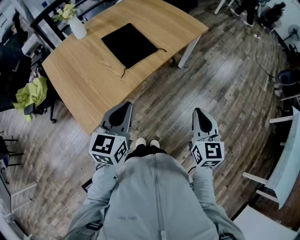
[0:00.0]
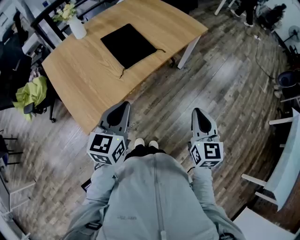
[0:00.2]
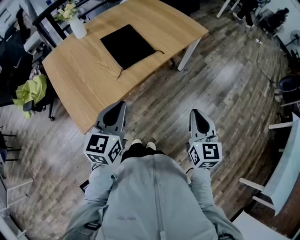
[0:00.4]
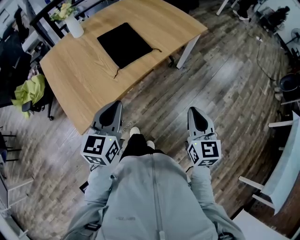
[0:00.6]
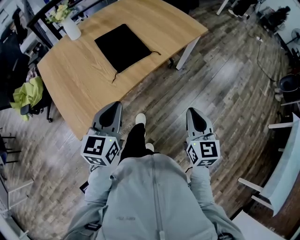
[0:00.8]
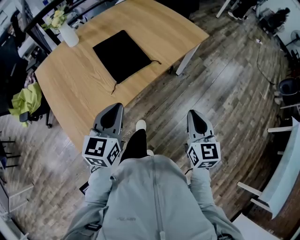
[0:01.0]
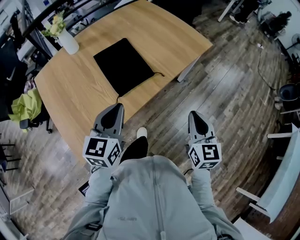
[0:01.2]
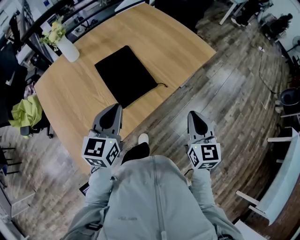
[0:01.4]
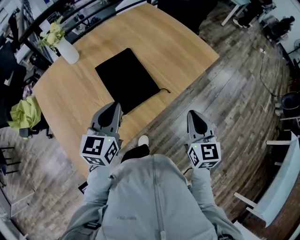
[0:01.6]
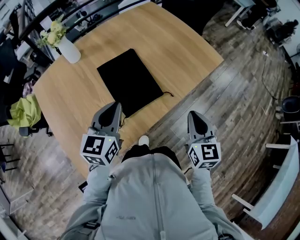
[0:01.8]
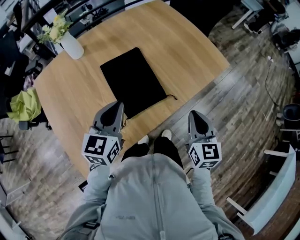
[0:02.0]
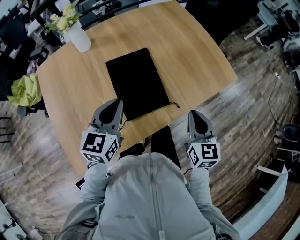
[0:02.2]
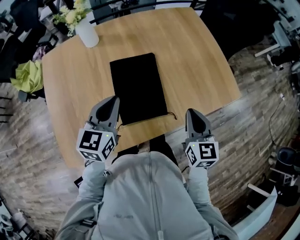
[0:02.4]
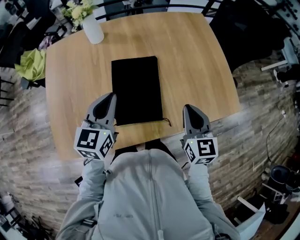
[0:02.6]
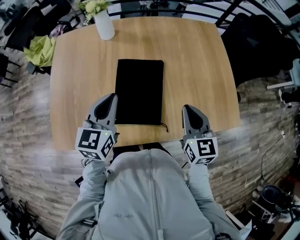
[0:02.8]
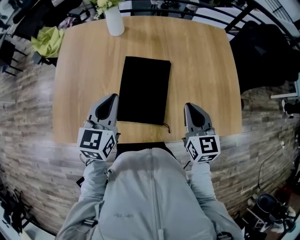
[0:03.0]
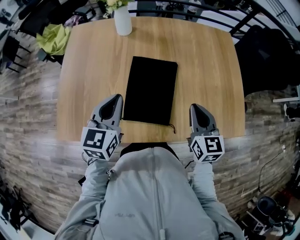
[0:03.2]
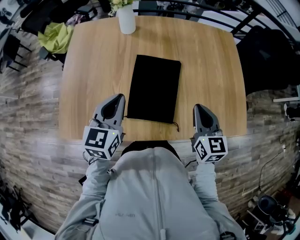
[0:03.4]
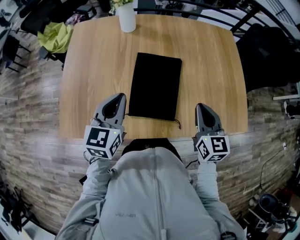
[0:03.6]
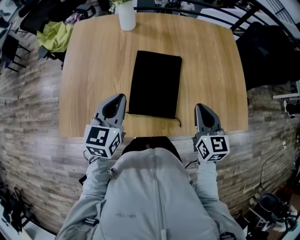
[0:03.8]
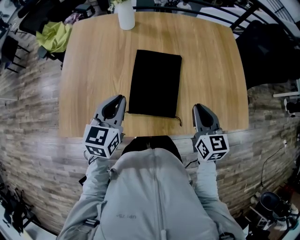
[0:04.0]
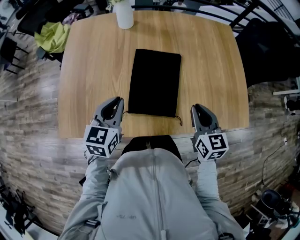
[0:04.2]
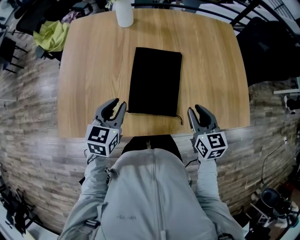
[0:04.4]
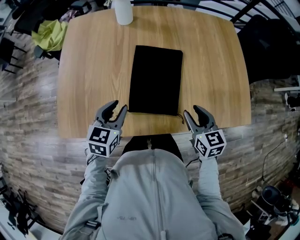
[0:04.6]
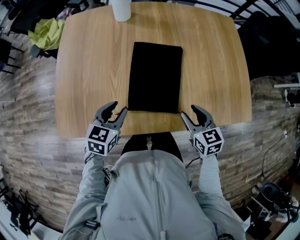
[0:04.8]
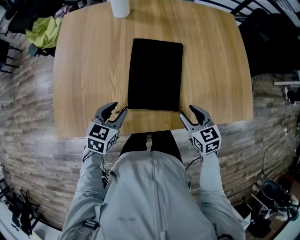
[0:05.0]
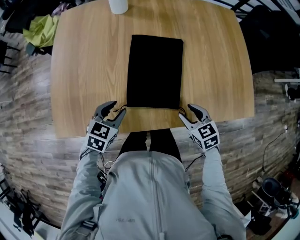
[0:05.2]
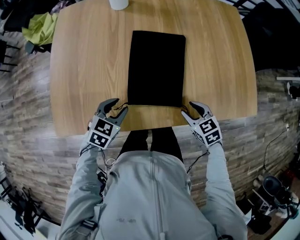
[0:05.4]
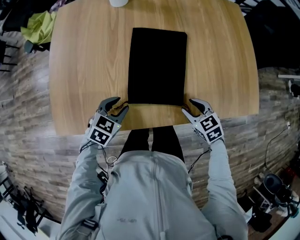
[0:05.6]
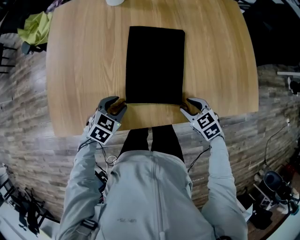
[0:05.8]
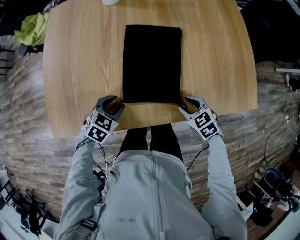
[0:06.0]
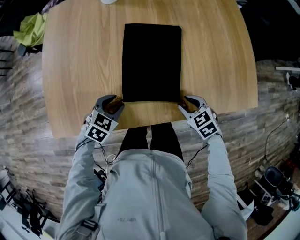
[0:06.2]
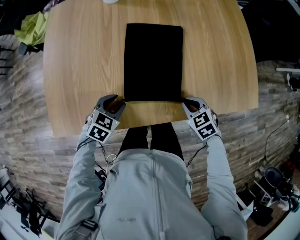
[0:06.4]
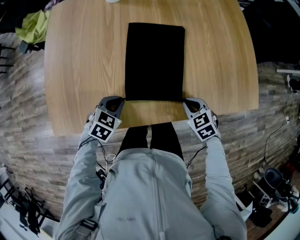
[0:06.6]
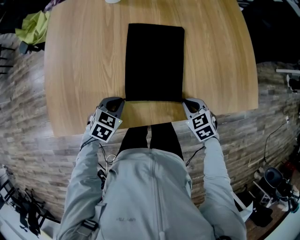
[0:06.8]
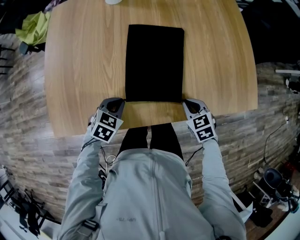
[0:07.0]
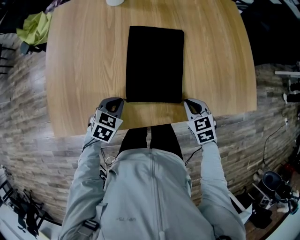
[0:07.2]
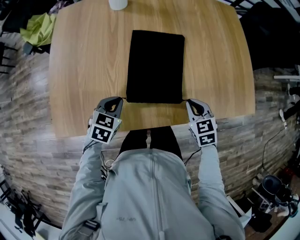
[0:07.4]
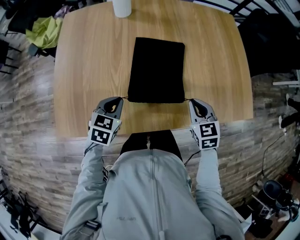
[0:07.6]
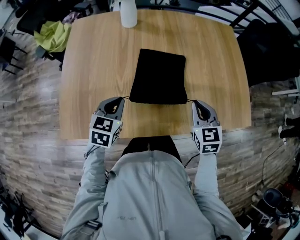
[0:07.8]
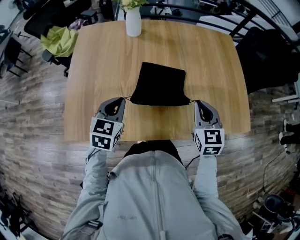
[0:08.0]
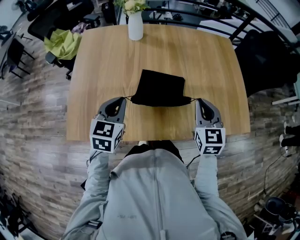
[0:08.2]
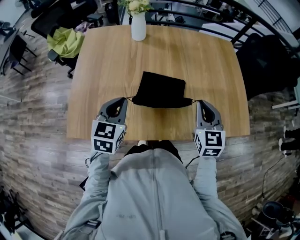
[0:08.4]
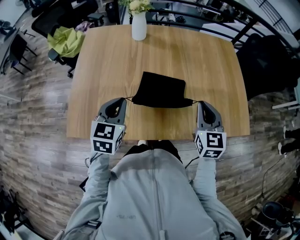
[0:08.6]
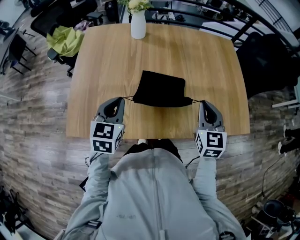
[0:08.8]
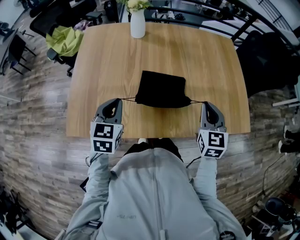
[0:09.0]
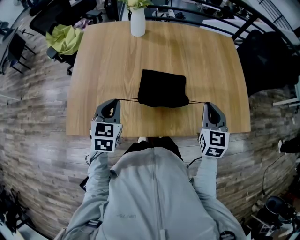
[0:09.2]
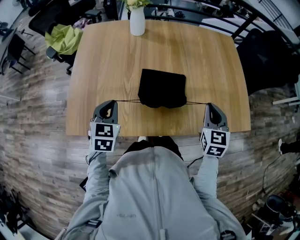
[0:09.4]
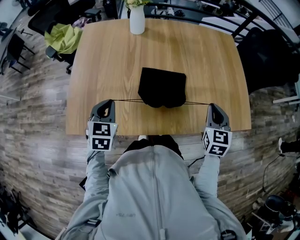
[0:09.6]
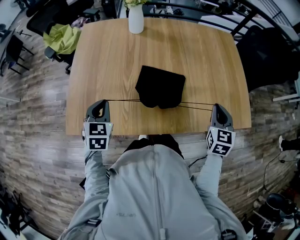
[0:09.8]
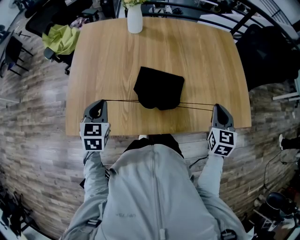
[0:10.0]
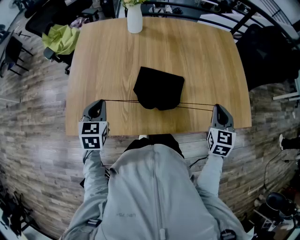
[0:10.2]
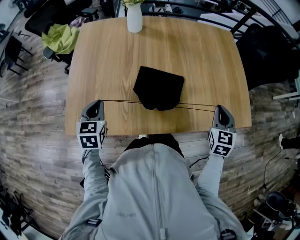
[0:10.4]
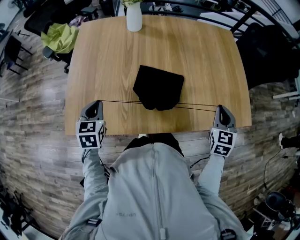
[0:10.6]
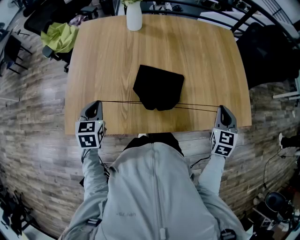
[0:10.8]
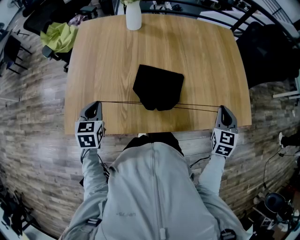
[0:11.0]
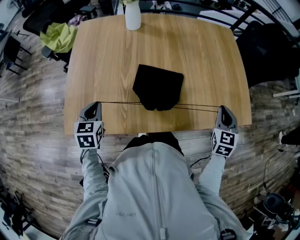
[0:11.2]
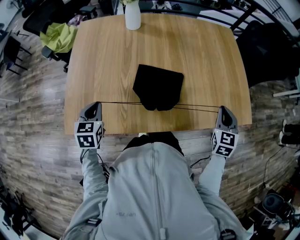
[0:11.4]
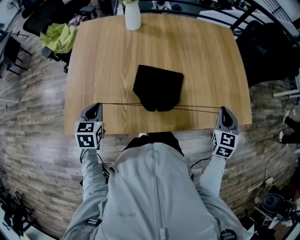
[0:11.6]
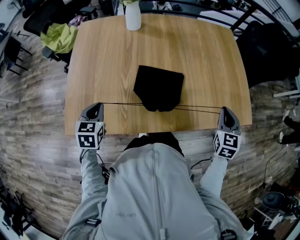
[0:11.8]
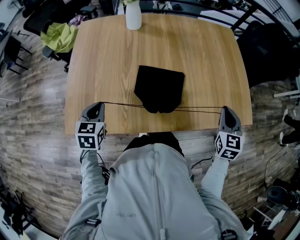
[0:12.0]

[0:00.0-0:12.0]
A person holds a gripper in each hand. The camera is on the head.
0:00.0 to 0:01.6: The two grippers go approximately 25 cm forward.
0:01.6 to 0:03.0: The left gripper shifts by approximately 10 cm, and changes its angle by roughly 40 degrees, while the right gripper ends up roughly 25 cm from where it was, and rotates roughly 40 degrees.
0:03.0 to 0:04.4: The left gripper is displaced downward by about 10 cm, while the right gripper heads downward, covering roughly 5 cm.
0:04.4 to 0:06.0: Both grippers travel together downward, roughly 15 cm. The left gripper turns by approximately 40 degrees. The right gripper swivels roughly 40 degrees.
0:06.0 to 0:07.6: The right gripper shifts roughly 10 cm upward and forward, rotates roughly 30 degrees, and closes, while the left gripper goes approximately 5 cm upward, rotates about 20 degrees, and closes its fingers.
0:07.6 to 0:09.0: The grippers both shift upward by some 10 cm. The right gripper turns by about 20 degrees, while the left gripper turns by approximately 20 degrees.
0:09.0 to 0:10.4: The right gripper travels to the right by approximately 10 cm. The left gripper goes approximately 10 cm to the left.
0:10.4 to 0:12.0: The grippers move only a little.

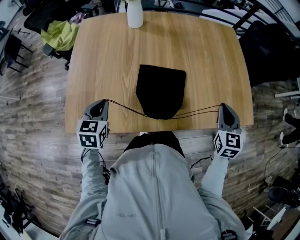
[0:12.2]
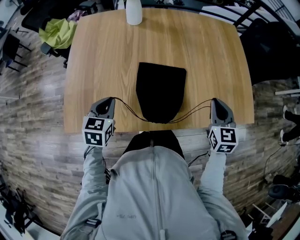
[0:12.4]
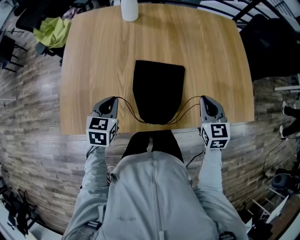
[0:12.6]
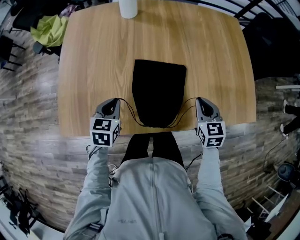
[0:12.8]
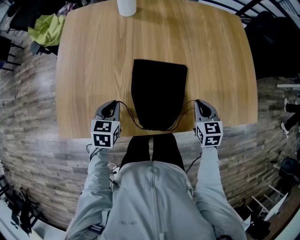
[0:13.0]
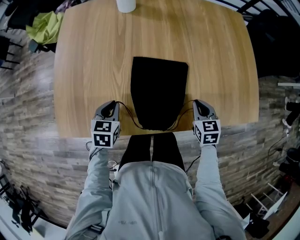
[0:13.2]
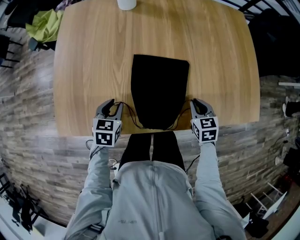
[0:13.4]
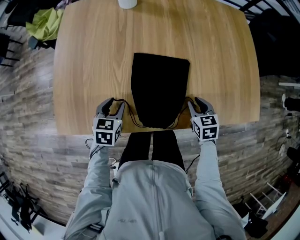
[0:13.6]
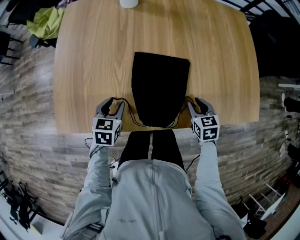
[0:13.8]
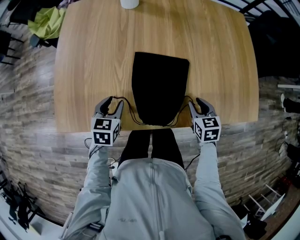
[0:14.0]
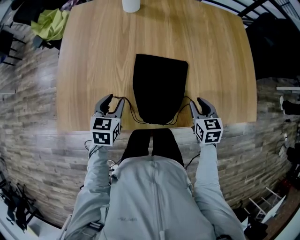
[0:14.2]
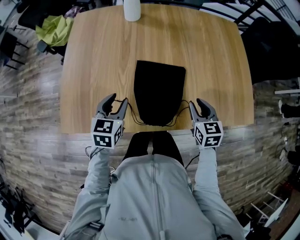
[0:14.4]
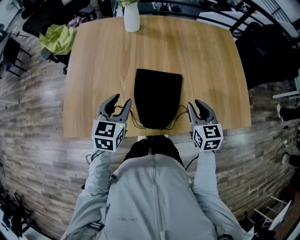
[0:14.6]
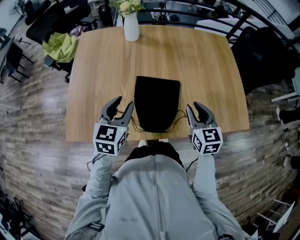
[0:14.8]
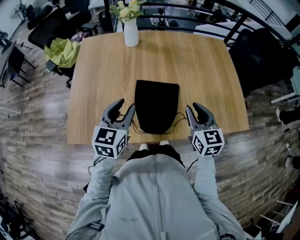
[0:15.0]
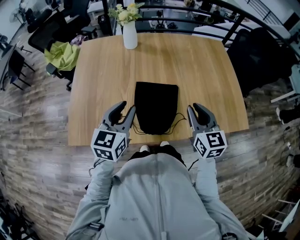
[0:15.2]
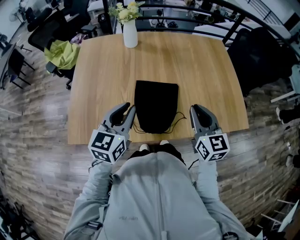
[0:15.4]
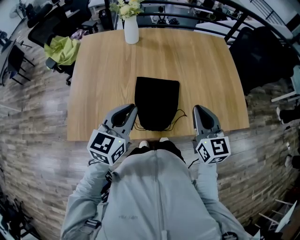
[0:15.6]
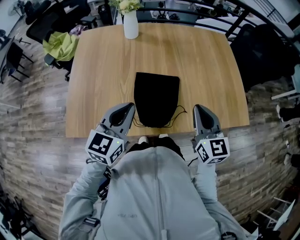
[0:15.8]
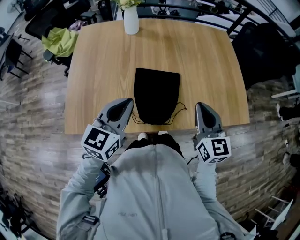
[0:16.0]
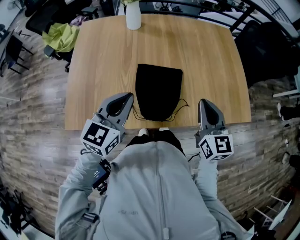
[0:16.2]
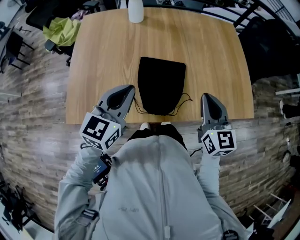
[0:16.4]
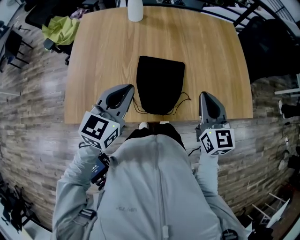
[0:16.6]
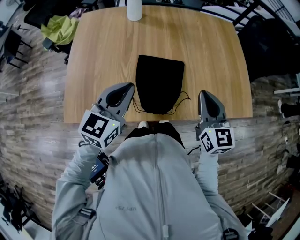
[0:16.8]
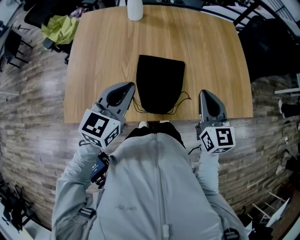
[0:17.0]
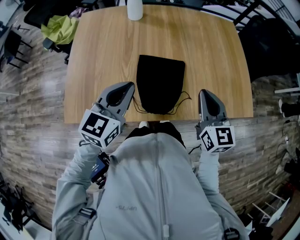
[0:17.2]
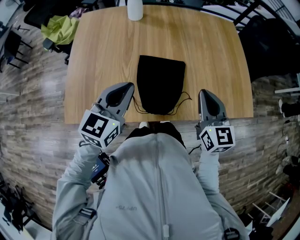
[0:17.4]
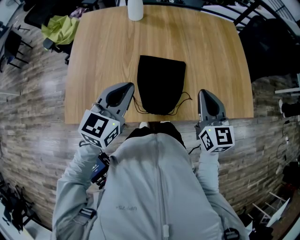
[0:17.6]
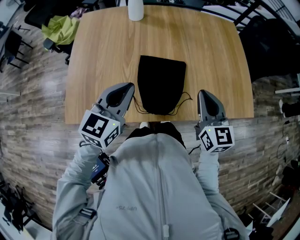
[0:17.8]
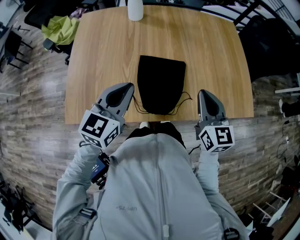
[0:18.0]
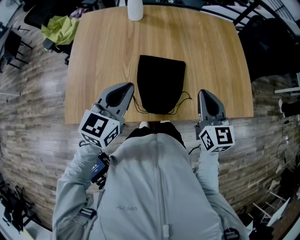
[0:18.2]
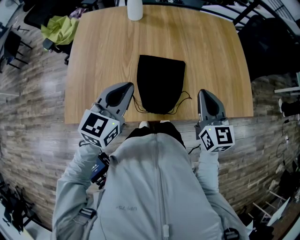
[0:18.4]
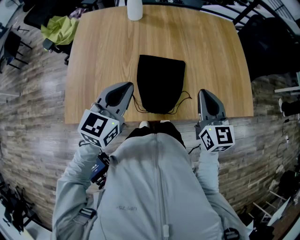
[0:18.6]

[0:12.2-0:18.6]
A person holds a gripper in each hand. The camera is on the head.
0:12.2 to 0:13.8: The left gripper goes some 15 cm downward and to the right, and opens. Meanwhile the right gripper is displaced downward by some 20 cm, swivels approximately 30 degrees, and opens up.
0:13.8 to 0:15.4: The two grippers go roughly 25 cm upward. The right gripper angles its fingers upward, by some 40 degrees. The left gripper tilts its fingers about 30 degrees upward, and closes its fingers.
0:15.4 to 0:17.0: The grippers stay close to where they were, moving slightly.
0:17.0 to 0:18.6: The two grippers keep their place.

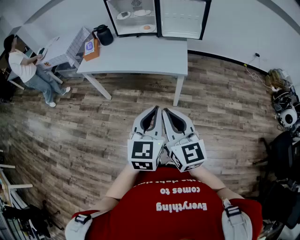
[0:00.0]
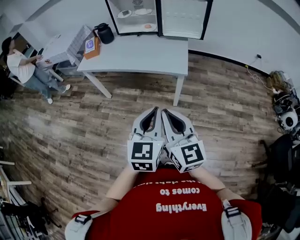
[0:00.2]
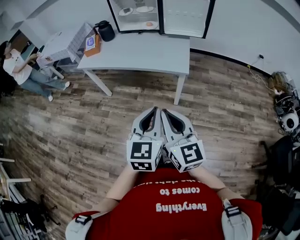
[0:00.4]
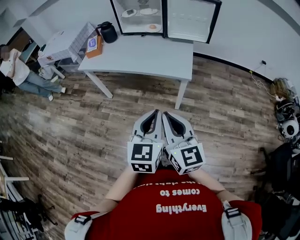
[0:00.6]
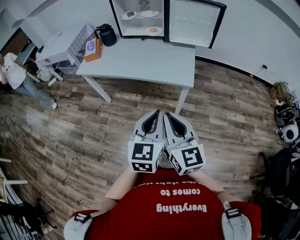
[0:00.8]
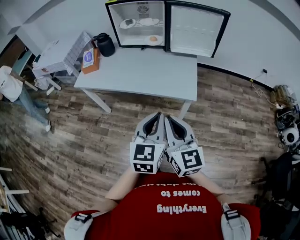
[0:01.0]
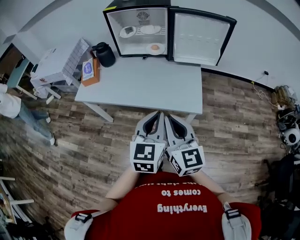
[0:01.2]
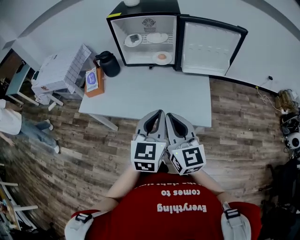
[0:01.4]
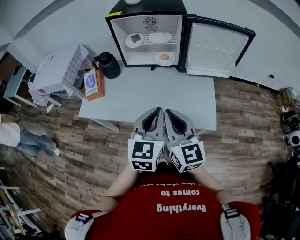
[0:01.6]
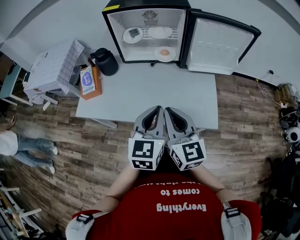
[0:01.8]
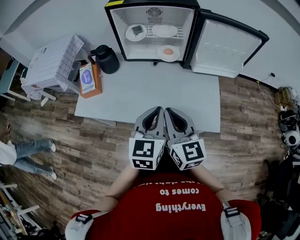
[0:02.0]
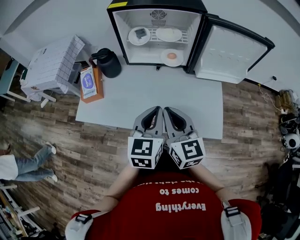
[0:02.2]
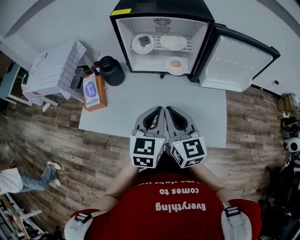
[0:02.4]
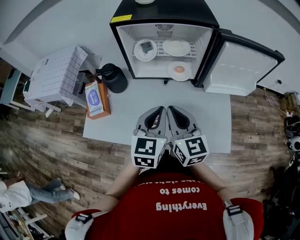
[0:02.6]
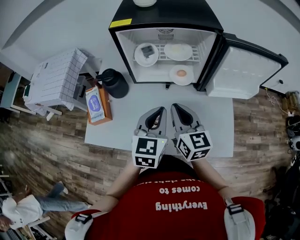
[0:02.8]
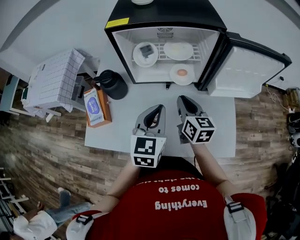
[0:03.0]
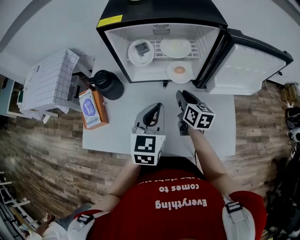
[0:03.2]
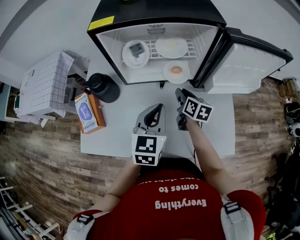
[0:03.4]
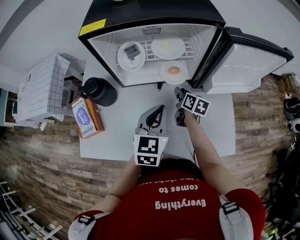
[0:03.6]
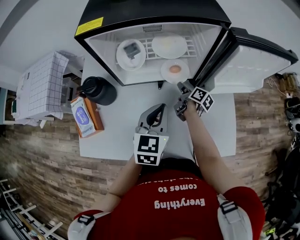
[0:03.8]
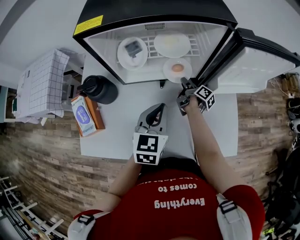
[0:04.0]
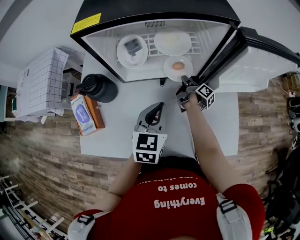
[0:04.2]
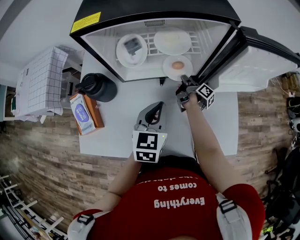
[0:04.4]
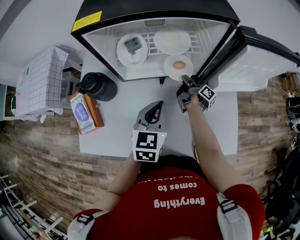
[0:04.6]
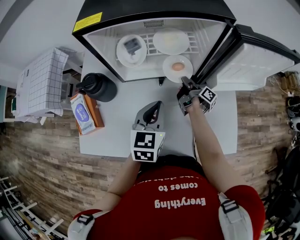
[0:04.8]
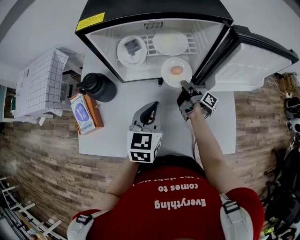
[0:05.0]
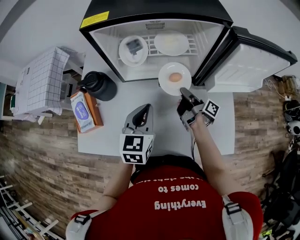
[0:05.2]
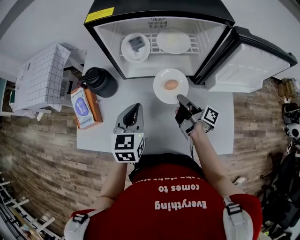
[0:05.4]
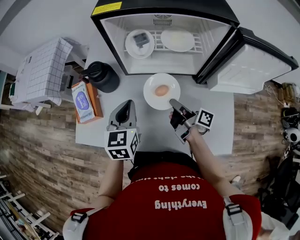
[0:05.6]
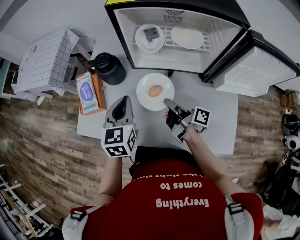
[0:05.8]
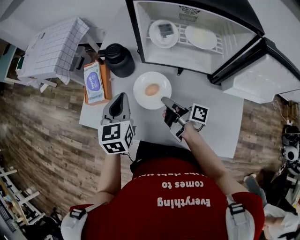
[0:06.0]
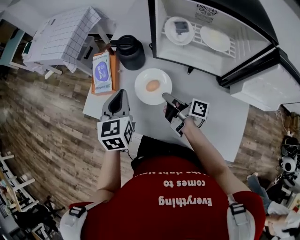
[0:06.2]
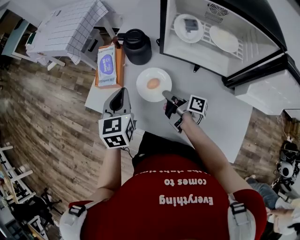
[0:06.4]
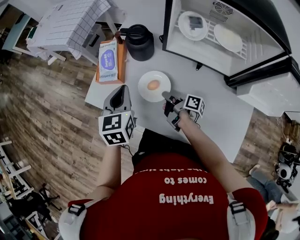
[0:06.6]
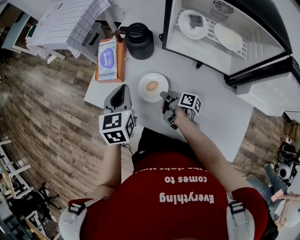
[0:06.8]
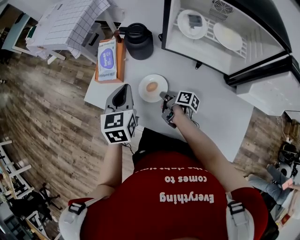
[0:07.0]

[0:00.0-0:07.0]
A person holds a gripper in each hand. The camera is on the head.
0:00.0 to 0:01.4: The left gripper moves approximately 40 cm.
0:01.4 to 0:02.8: The left gripper changes place by about 30 cm.
0:02.8 to 0:04.2: The left gripper shifts by approximately 15 cm.
0:04.2 to 0:05.6: The left gripper ends up some 15 cm from where it was.
0:05.6 to 0:07.0: The left gripper moves some 15 cm, and turns by approximately 20 degrees.
